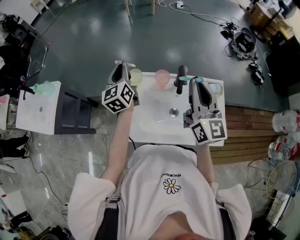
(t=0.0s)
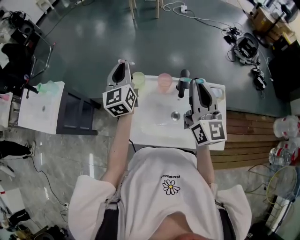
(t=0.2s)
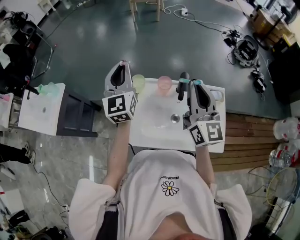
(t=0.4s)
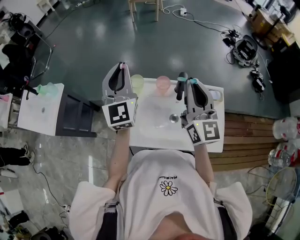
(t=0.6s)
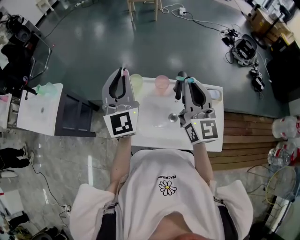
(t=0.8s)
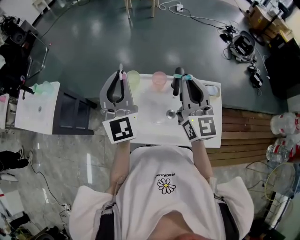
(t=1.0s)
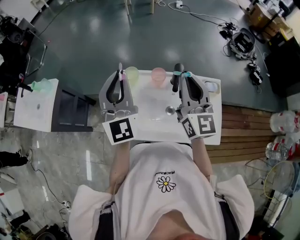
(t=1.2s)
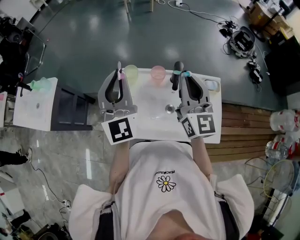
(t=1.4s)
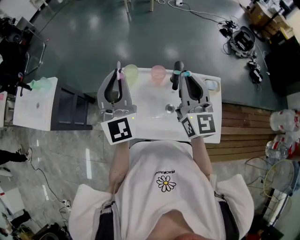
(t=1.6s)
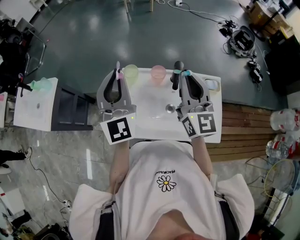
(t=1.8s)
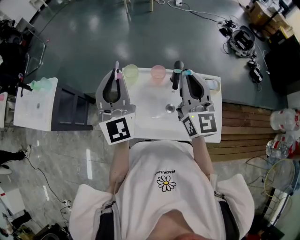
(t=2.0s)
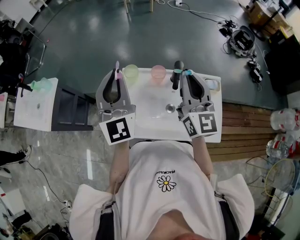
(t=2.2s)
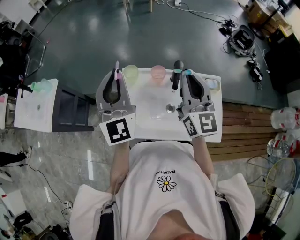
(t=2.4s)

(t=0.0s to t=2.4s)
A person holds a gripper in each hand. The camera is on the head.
t=0.0s - t=1.2s: The left gripper travels backward and upward by about 20 cm, and changes its angle by some 40 degrees.
t=1.2s - t=2.4s: The two grippers keep their place.

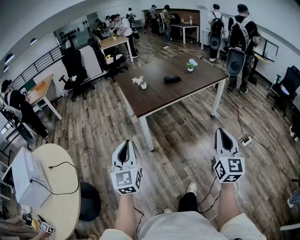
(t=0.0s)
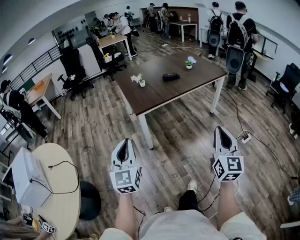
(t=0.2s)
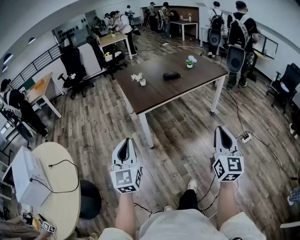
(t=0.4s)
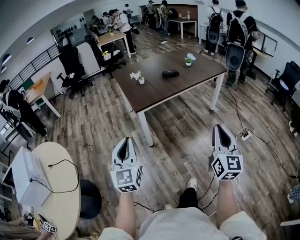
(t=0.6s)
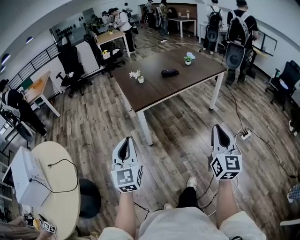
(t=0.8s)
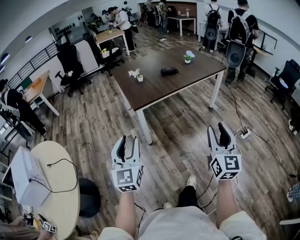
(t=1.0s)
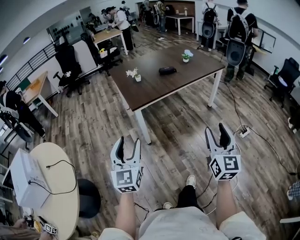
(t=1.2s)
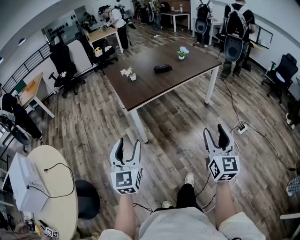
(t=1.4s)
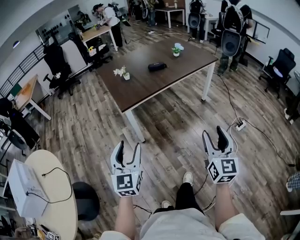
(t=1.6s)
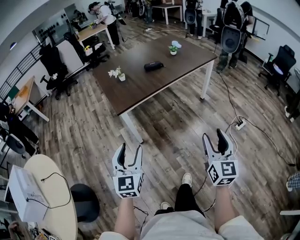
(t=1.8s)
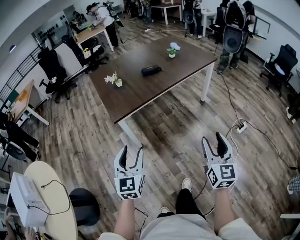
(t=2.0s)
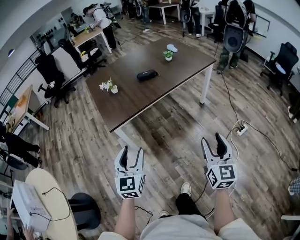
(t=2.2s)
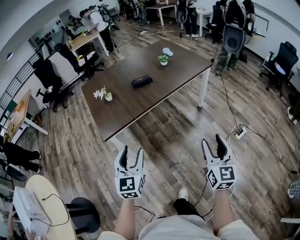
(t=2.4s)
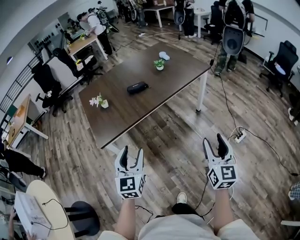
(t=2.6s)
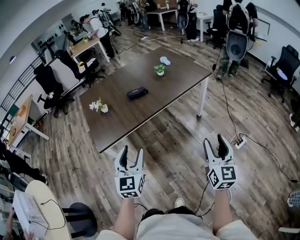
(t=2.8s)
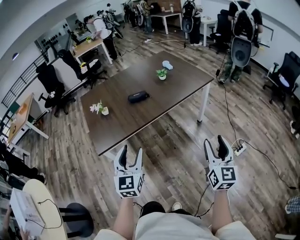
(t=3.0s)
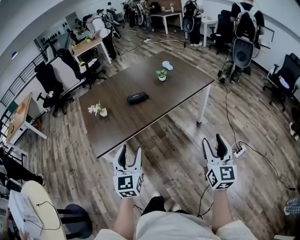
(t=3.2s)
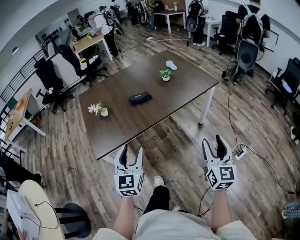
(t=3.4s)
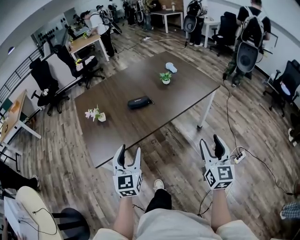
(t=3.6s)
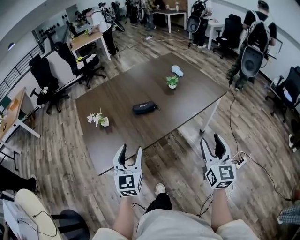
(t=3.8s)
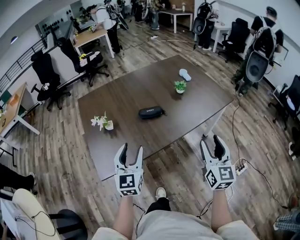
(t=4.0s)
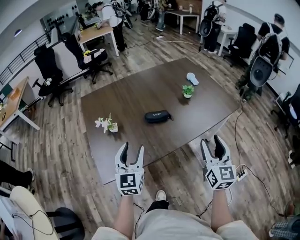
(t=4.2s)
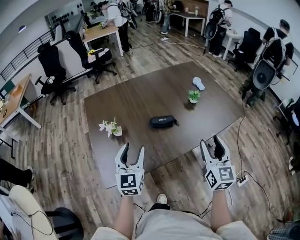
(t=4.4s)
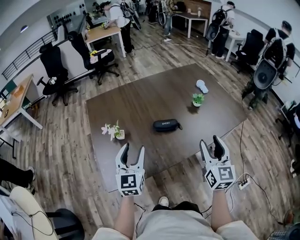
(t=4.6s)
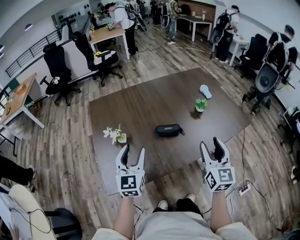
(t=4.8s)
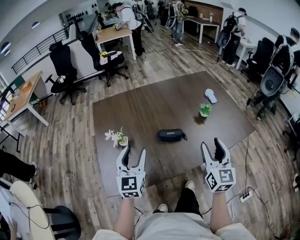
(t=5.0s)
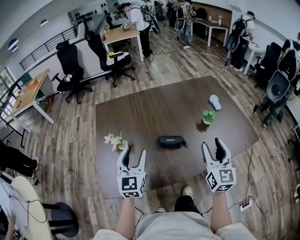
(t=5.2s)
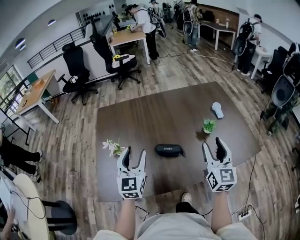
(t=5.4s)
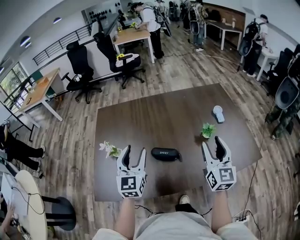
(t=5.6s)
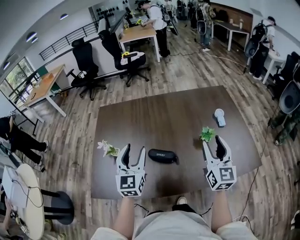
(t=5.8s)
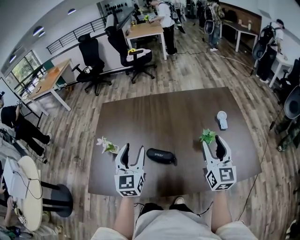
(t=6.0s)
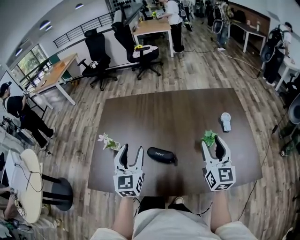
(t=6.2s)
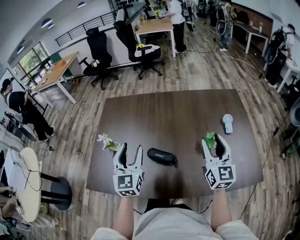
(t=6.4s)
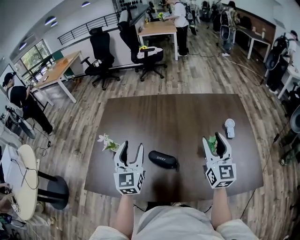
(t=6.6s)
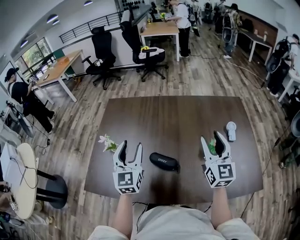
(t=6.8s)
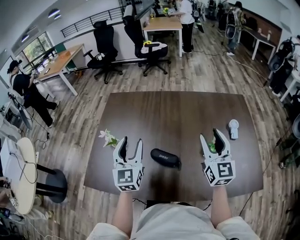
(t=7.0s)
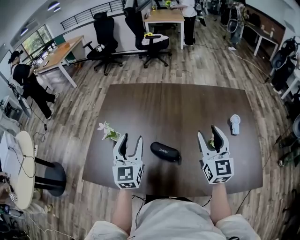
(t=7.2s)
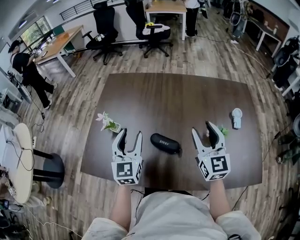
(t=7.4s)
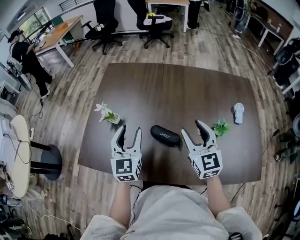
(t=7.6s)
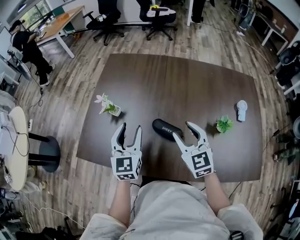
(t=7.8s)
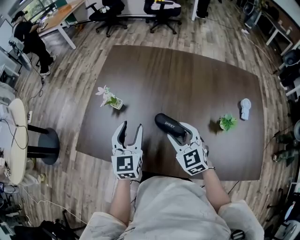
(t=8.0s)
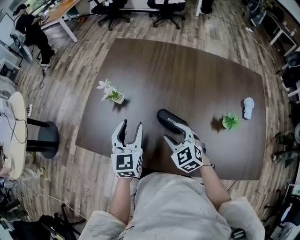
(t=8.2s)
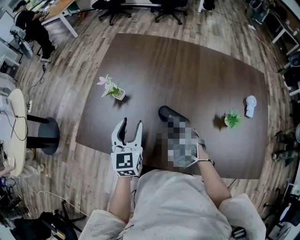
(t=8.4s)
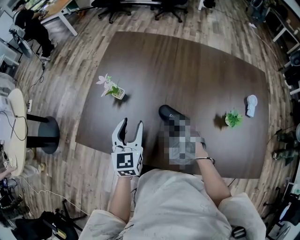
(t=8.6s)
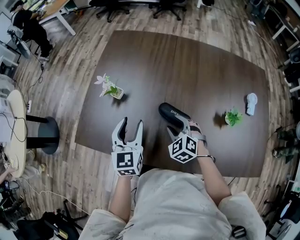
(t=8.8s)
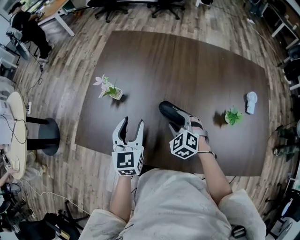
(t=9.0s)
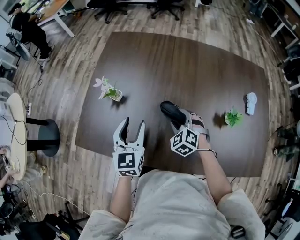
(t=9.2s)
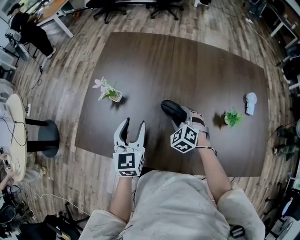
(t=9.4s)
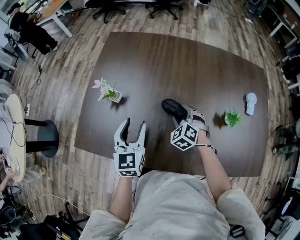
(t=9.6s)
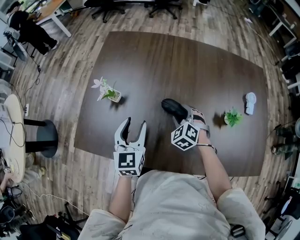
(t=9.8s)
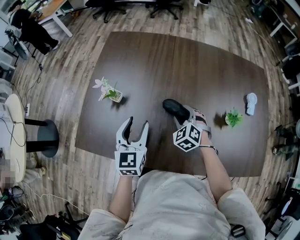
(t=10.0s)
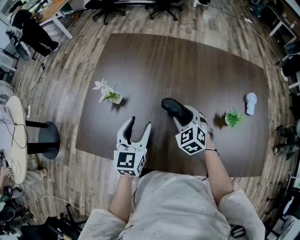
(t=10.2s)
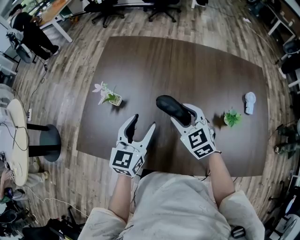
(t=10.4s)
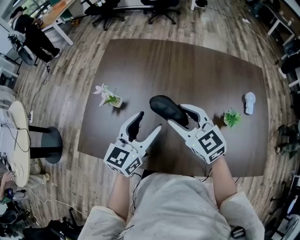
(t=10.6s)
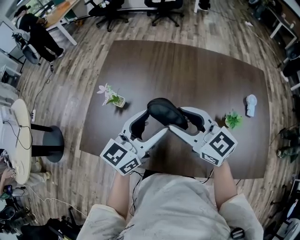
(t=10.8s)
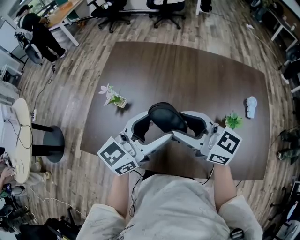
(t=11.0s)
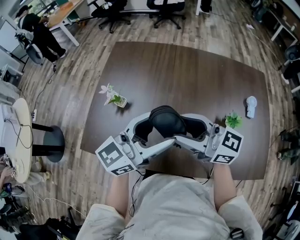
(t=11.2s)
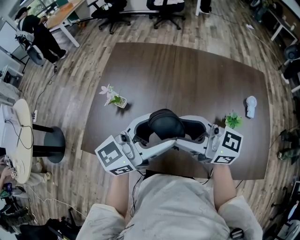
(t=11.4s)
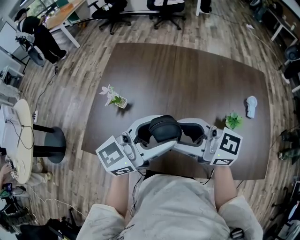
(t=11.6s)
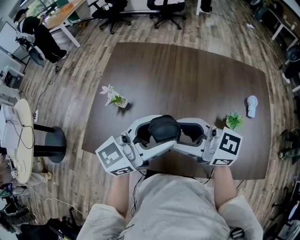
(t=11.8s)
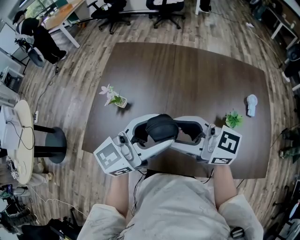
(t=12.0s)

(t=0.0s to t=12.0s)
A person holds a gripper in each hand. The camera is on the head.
t=0.0s - t=1.6s: The right gripper goes roughly 5 cm downward, and opens, while the left gripper goes approximately 10 cm to the right and downward, and opens up.
t=1.6s - t=3.0s: Both grippers travel together forward and to the right, about 35 cm.
t=3.0s - t=4.4s: Both grippers move forward and to the left, roughly 35 cm.
t=4.4s - t=6.0s: The left gripper goes roughly 20 cm forward and to the right, and turns by about 20 degrees. The right gripper heads forward and to the right, covering roughly 30 cm, and swivels approximately 20 degrees.
t=6.0s - t=7.6s: The right gripper is displaced to the left, downward and forward by roughly 15 cm, and rotates about 30 degrees. Meanwhile the left gripper heads downward and to the left, covering roughly 10 cm.
t=7.6s - t=9.0s: The left gripper travels downward by about 5 cm; the right gripper is displaced downward and to the left by about 20 cm, and points its fingers roughly 40 degrees further downward.
t=9.0s - t=10.4s: The left gripper changes place by about 5 cm; the right gripper shifts approximately 10 cm upward, and swivels some 20 degrees.
t=10.4s - t=12.0s: Both grippers travel together upward, roughly 15 cm. The left gripper rotates about 40 degrees; the right gripper angles its fingers upward, by some 40 degrees.

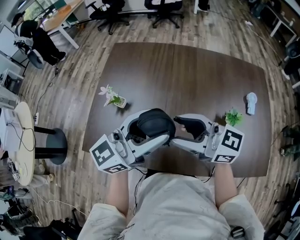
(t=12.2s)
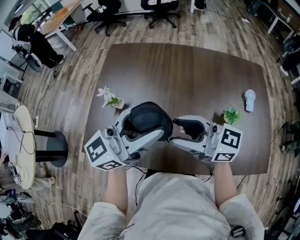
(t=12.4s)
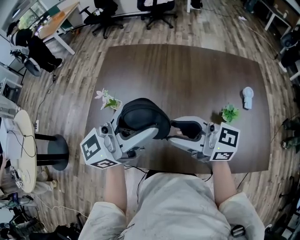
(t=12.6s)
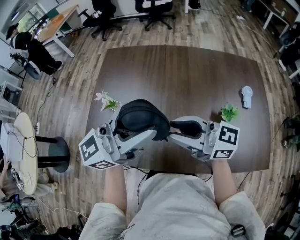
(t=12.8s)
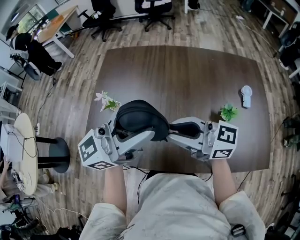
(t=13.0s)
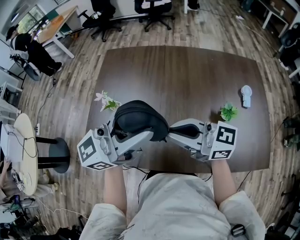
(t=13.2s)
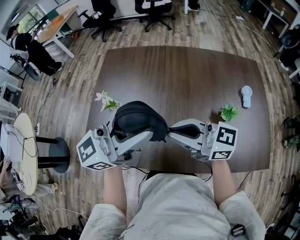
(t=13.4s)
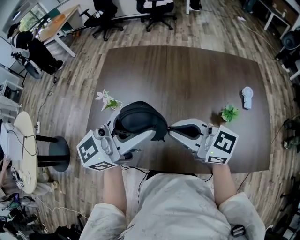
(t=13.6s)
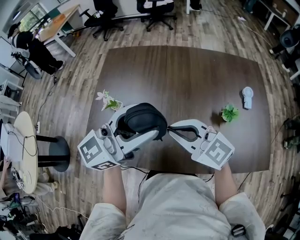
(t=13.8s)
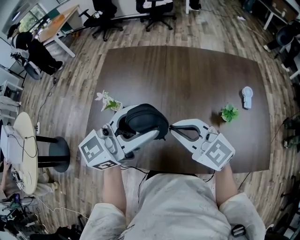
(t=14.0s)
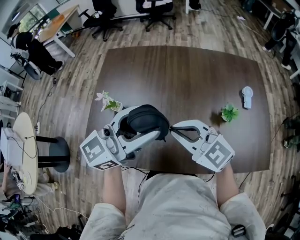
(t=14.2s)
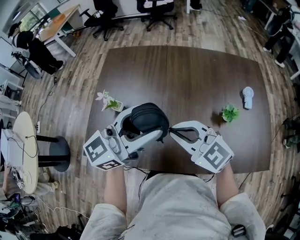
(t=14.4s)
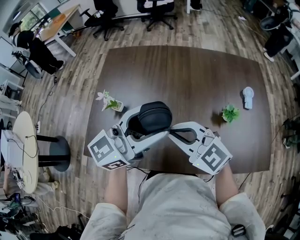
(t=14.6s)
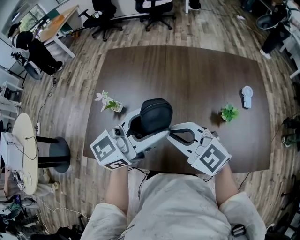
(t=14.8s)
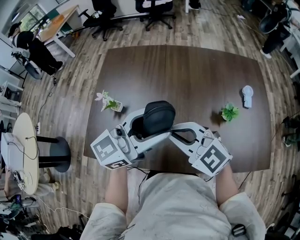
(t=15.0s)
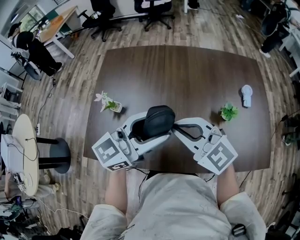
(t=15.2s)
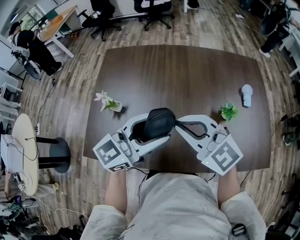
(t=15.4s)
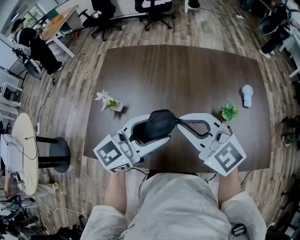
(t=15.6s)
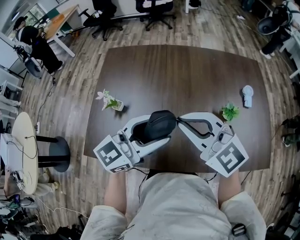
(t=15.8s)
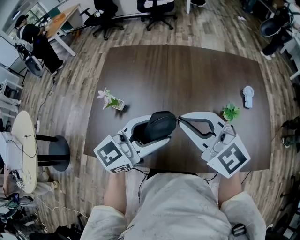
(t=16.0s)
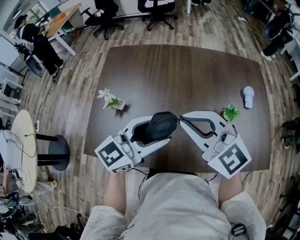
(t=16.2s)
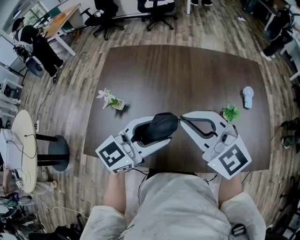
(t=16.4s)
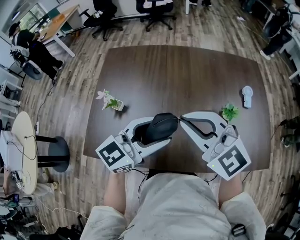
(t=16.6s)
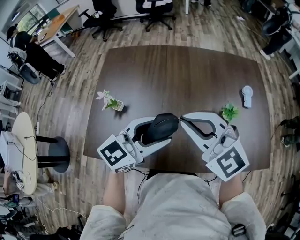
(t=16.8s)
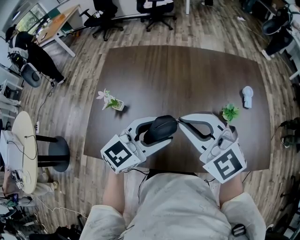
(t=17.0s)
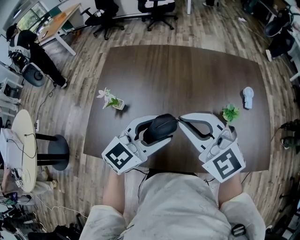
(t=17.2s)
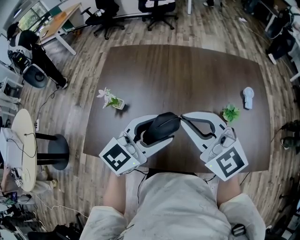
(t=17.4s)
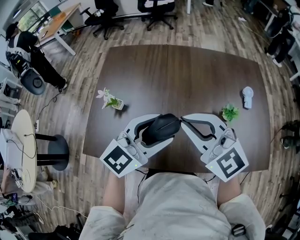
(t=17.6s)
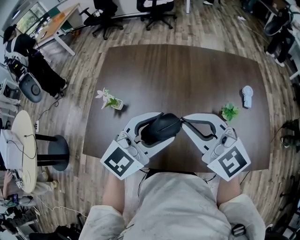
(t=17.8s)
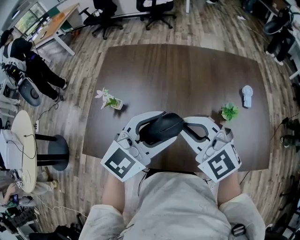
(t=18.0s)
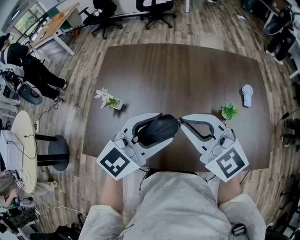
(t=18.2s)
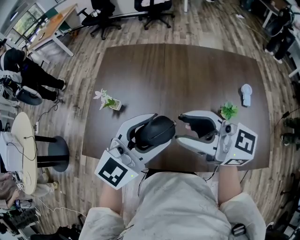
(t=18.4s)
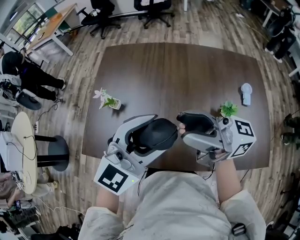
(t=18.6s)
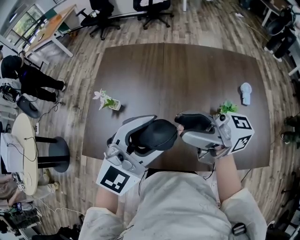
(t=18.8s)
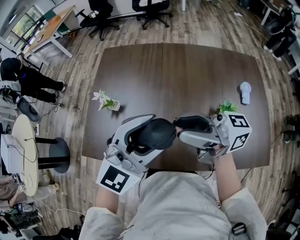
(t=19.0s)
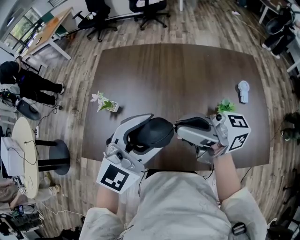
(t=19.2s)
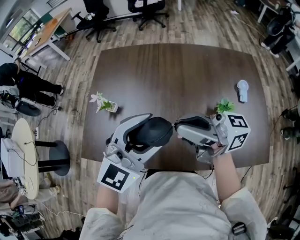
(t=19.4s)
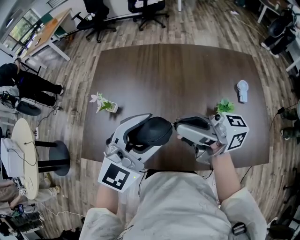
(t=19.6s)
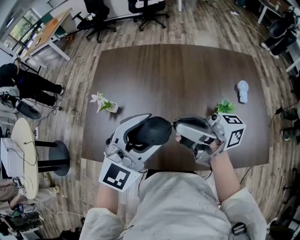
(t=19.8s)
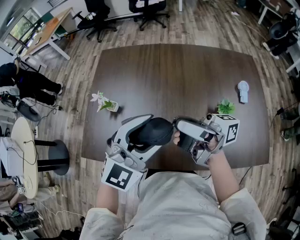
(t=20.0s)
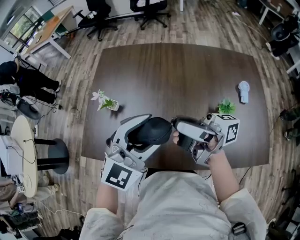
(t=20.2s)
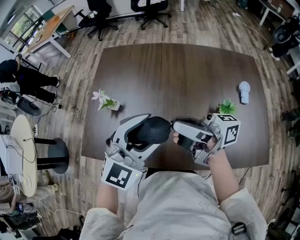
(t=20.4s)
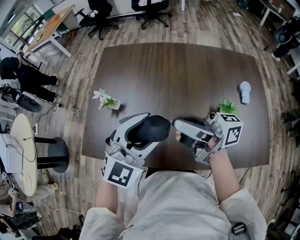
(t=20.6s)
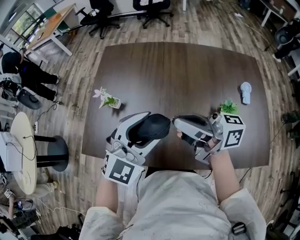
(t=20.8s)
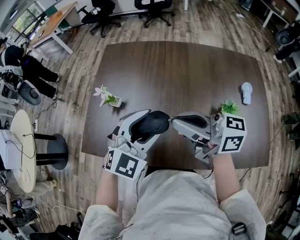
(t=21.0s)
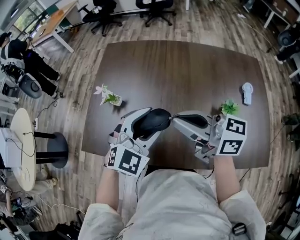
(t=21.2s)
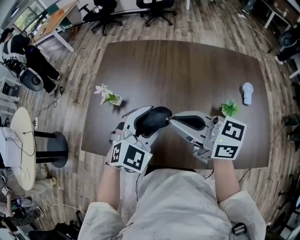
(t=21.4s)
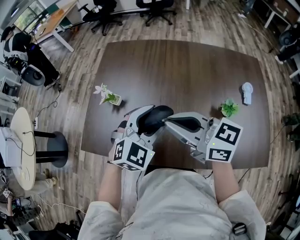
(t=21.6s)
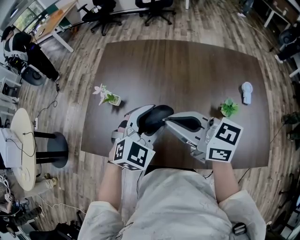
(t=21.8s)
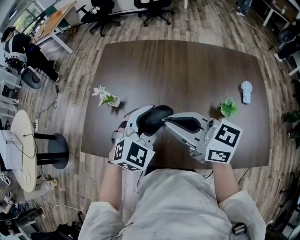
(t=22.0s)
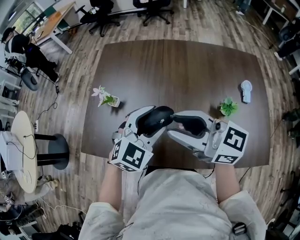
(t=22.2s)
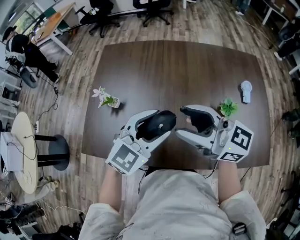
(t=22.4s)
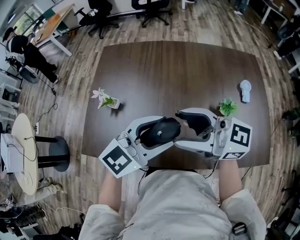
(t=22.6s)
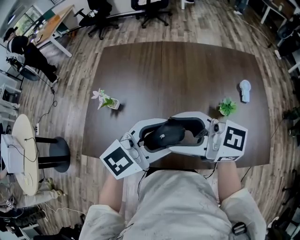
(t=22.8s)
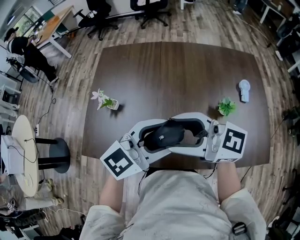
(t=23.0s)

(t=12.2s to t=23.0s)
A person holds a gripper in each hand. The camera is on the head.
t=12.2s - t=13.8s: The right gripper turns by approximately 30 degrees, and closes up.
t=13.8s - t=15.2s: The left gripper is displaced downward by some 5 cm.
t=15.2s - t=16.8s: The grippers make only small movements.
t=16.8s - t=18.4s: The right gripper rotates about 50 degrees, and opens.
t=18.4s - t=20.0s: The right gripper twists roughly 50 degrees clockwise, seen from behind, and closes its fingers.
t=20.0s - t=21.4s: The right gripper moves some 5 cm, and points its fingers approximately 40 degrees further downward; the left gripper travels downward by about 10 cm.
t=21.4s - t=23.0s: The right gripper changes its angle by roughly 20 degrees, and opens. The left gripper changes place by about 10 cm, and swivels some 40 degrees.
